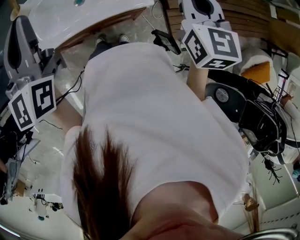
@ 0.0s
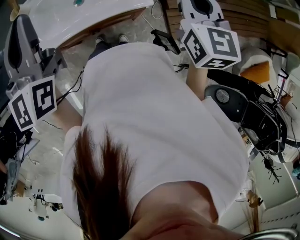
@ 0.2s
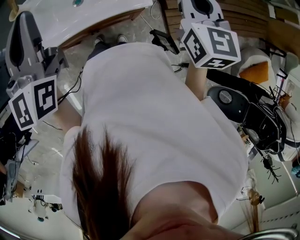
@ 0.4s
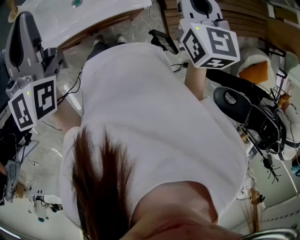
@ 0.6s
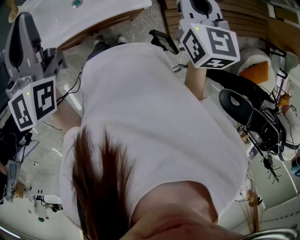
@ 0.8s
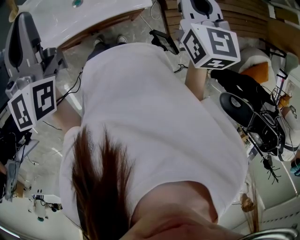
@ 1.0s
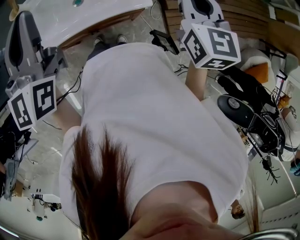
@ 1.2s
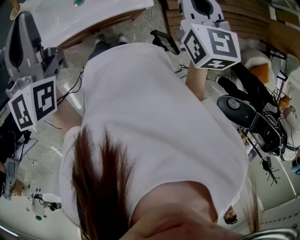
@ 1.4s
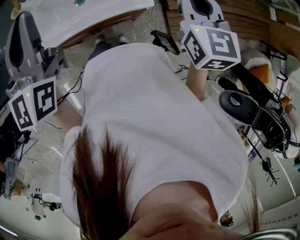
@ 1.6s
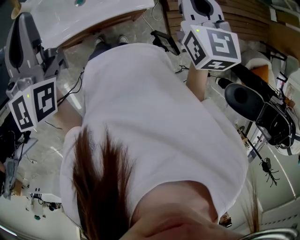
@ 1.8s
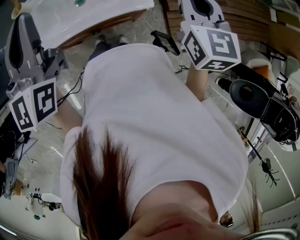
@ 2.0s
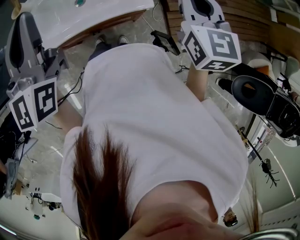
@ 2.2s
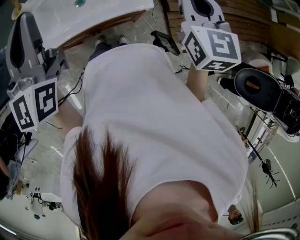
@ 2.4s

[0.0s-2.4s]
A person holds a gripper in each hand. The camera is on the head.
0.0s to 1.2s: There are only small adjustments of the grippers.
1.2s to 2.4s: Both grippers stay put.

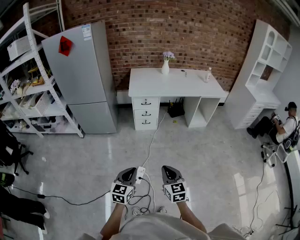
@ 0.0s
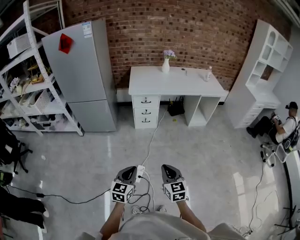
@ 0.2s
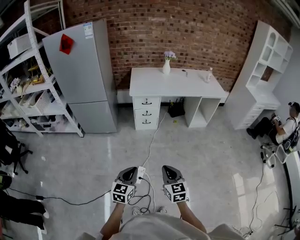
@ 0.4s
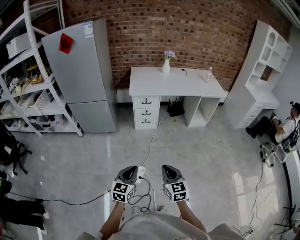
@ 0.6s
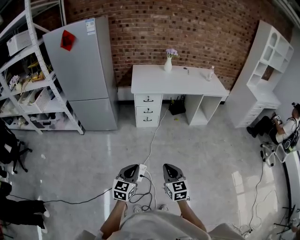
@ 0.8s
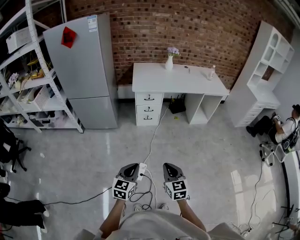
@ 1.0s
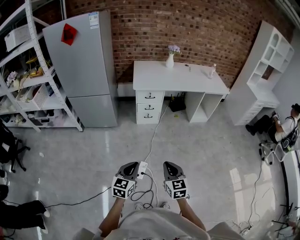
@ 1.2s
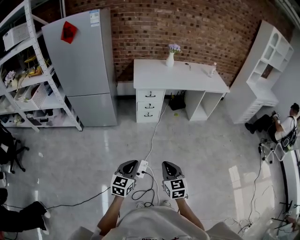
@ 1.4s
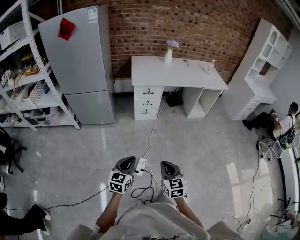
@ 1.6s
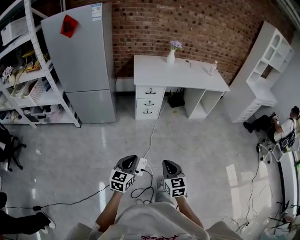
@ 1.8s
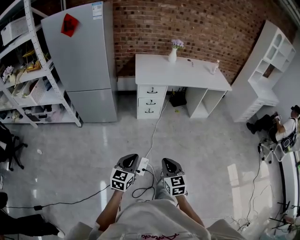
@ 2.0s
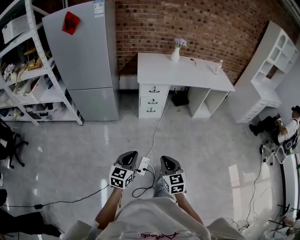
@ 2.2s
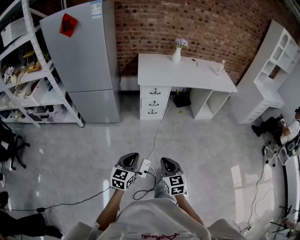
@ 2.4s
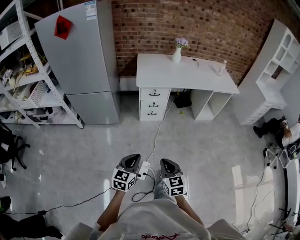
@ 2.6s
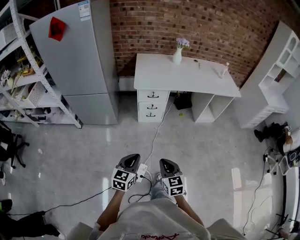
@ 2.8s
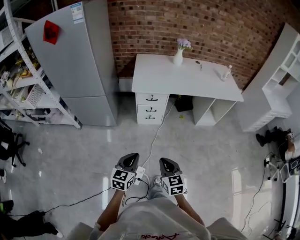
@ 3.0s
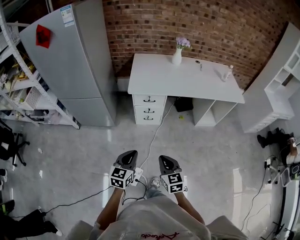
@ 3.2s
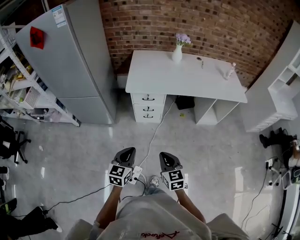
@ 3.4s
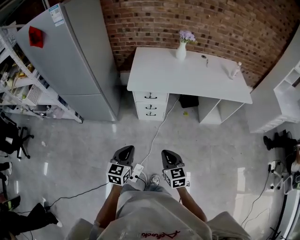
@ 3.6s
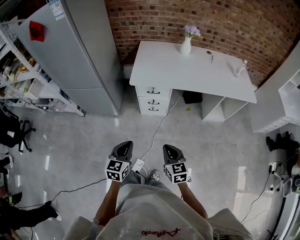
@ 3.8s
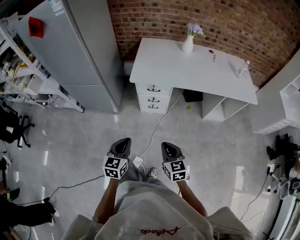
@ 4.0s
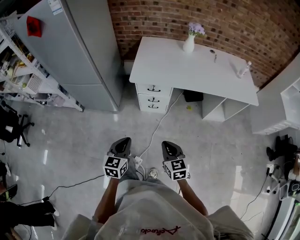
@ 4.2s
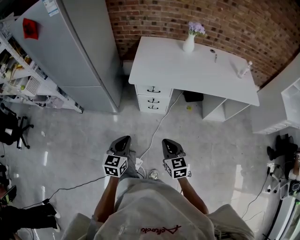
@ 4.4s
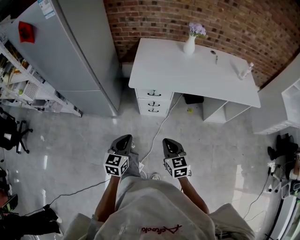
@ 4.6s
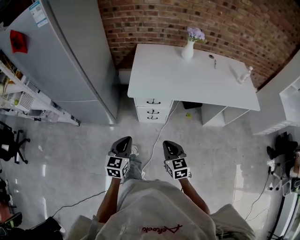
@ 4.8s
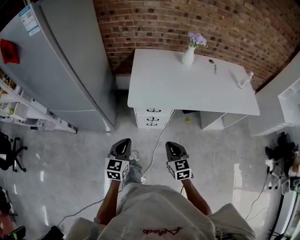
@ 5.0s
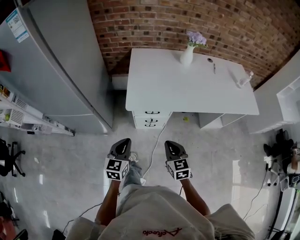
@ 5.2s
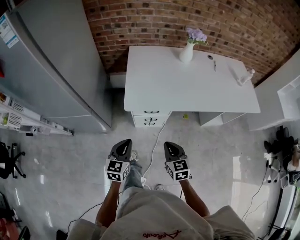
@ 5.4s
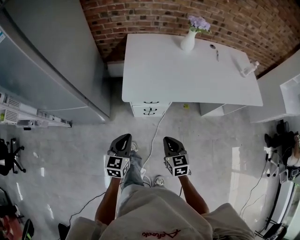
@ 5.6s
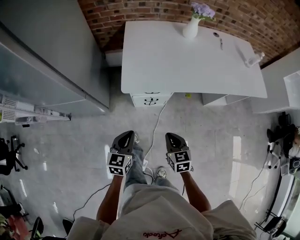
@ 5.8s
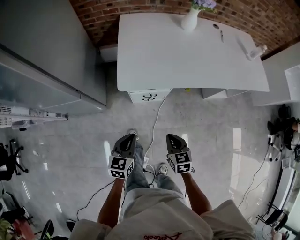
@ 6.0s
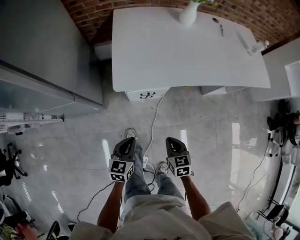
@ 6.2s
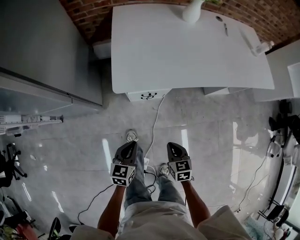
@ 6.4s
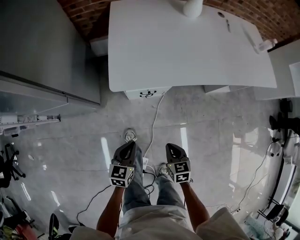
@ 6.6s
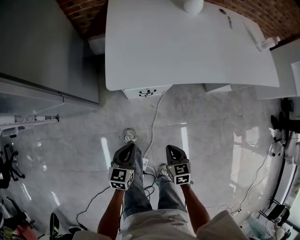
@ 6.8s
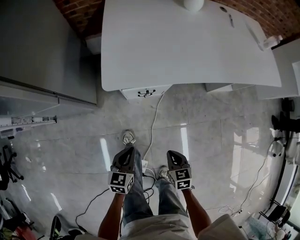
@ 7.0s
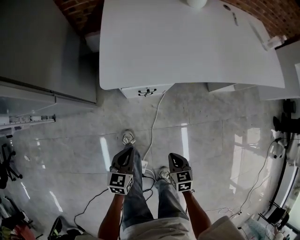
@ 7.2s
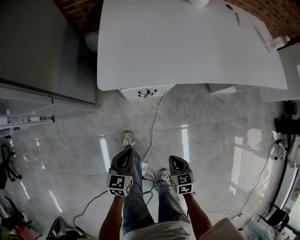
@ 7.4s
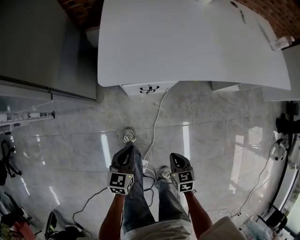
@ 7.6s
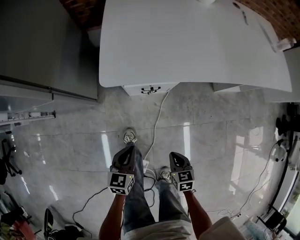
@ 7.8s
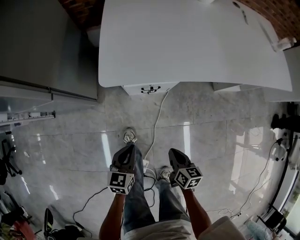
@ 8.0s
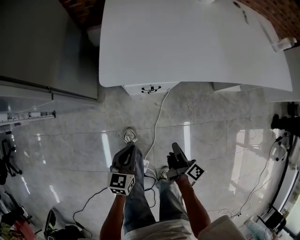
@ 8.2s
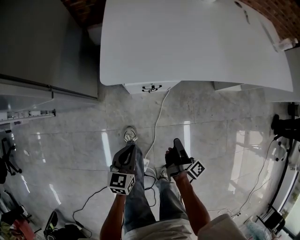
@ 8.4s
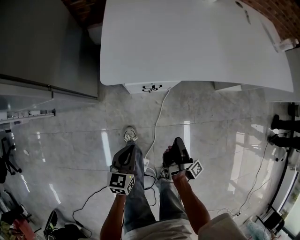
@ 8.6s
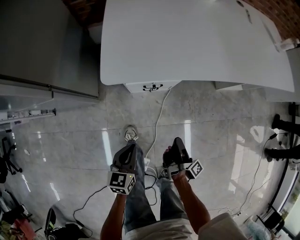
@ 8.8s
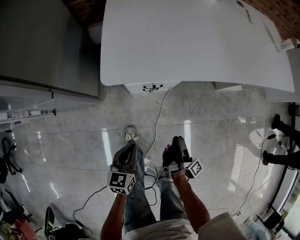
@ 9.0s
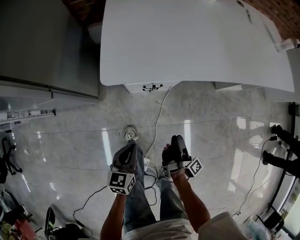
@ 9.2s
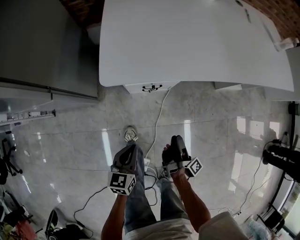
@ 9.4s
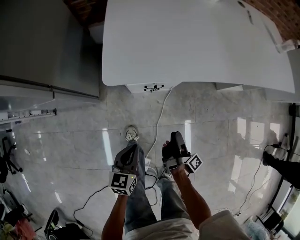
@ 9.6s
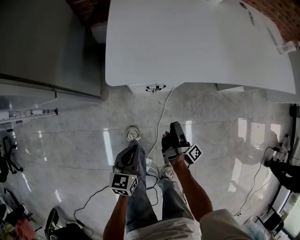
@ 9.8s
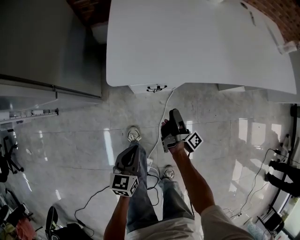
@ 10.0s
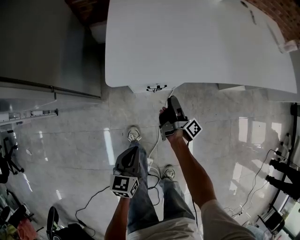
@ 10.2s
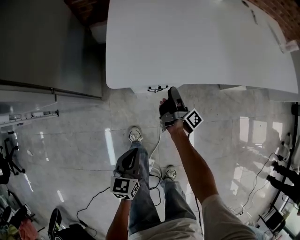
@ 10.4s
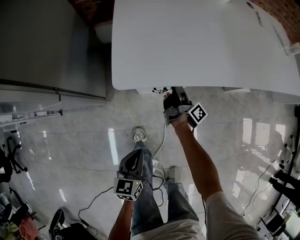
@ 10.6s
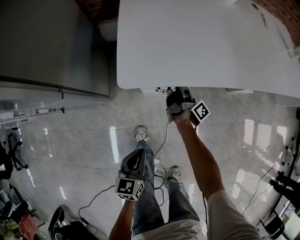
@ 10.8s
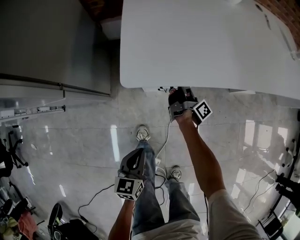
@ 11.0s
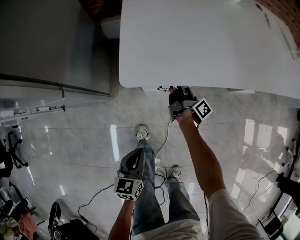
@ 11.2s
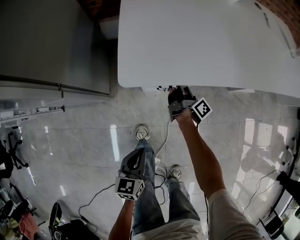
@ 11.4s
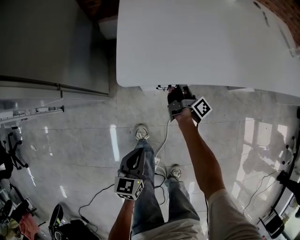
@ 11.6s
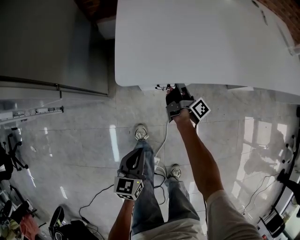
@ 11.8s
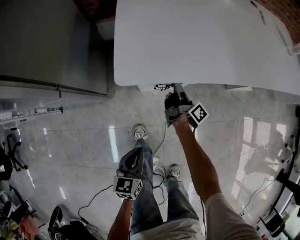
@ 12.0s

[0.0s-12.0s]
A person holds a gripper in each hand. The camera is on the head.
0.0s to 1.6s: Both grippers move to the left, some 10 cm.
1.6s to 3.0s: Both grippers move forward, approximately 20 cm.
3.0s to 4.4s: The right gripper goes approximately 20 cm forward and to the right. Meanwhile the left gripper shifts about 15 cm forward.
4.4s to 6.0s: The grippers both shift forward and downward by some 25 cm. The right gripper swivels approximately 20 degrees.
6.0s to 7.6s: Both grippers travel together downward, some 20 cm.
7.6s to 9.0s: The right gripper shifts roughly 10 cm forward, rotates around the line of its fingers by roughly 90 degrees, clockwise from behind, and opens up.
9.0s to 10.4s: The right gripper goes roughly 25 cm forward and to the left.
10.4s to 12.0s: The right gripper closes its fingers.

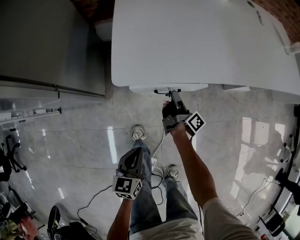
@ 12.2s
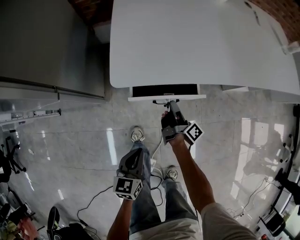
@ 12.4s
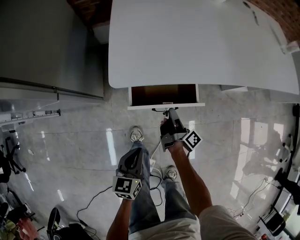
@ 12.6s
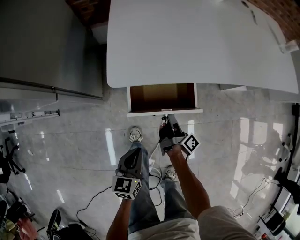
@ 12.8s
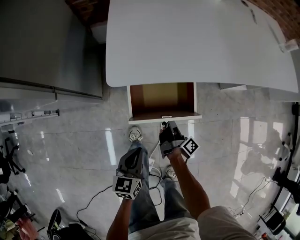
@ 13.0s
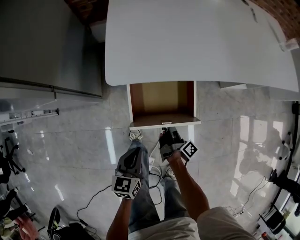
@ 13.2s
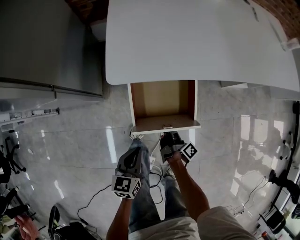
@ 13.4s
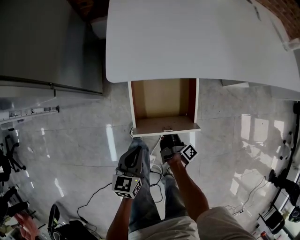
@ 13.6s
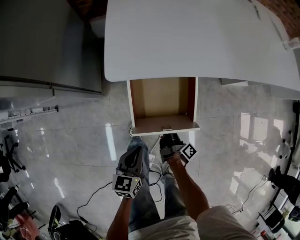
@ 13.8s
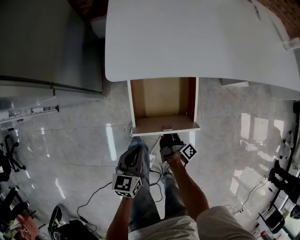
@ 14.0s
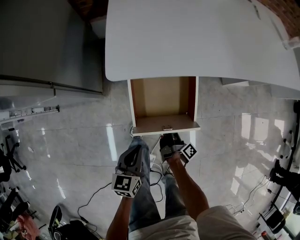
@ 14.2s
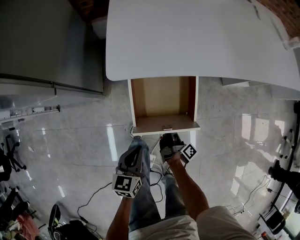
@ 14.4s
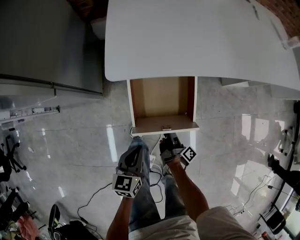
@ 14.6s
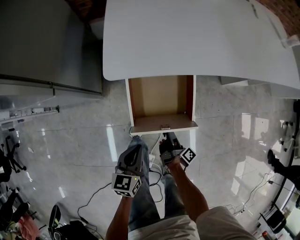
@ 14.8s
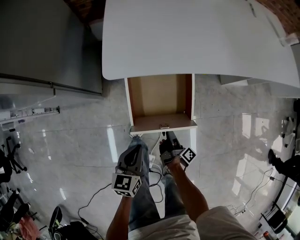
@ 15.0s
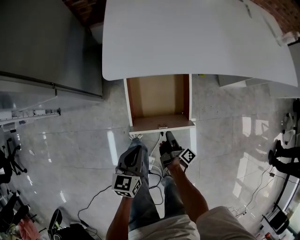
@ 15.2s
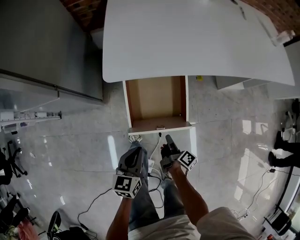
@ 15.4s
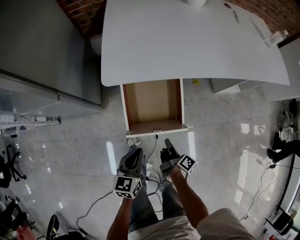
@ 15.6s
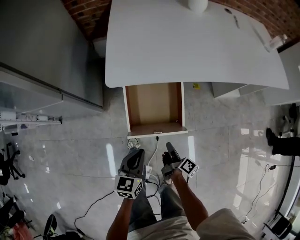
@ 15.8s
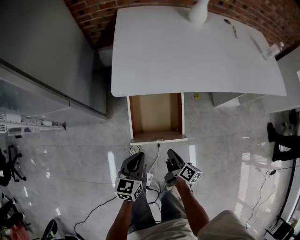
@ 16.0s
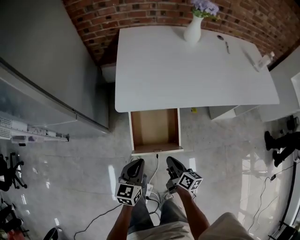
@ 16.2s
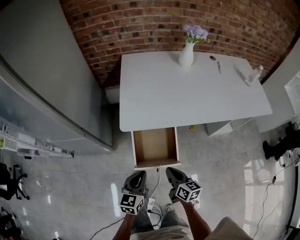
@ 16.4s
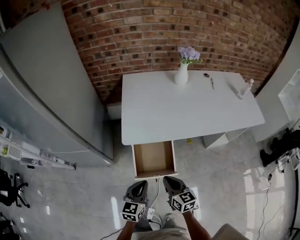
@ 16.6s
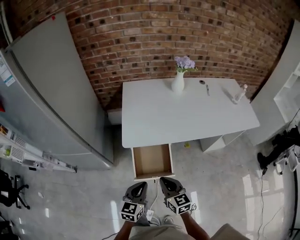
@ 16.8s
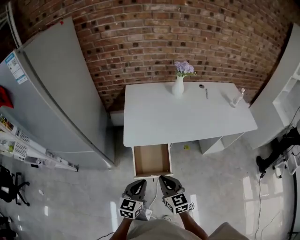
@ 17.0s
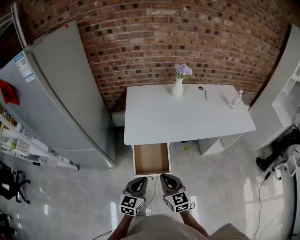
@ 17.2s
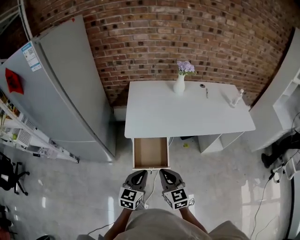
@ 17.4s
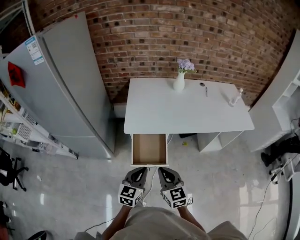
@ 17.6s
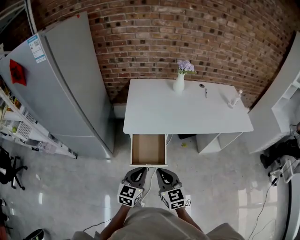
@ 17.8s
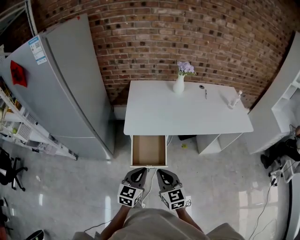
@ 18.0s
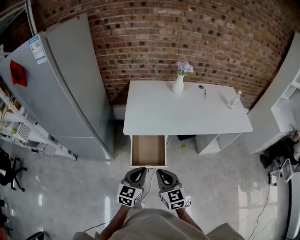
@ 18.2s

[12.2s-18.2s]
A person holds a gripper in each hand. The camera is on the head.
12.2s to 13.8s: The right gripper is displaced backward and downward by about 20 cm.
13.8s to 15.2s: The grippers move only a little.
15.2s to 16.6s: The right gripper goes some 35 cm upward, rotates around the line of its fingers by roughly 80 degrees, counterclockwise from behind, and closes up, while the left gripper travels upward by about 20 cm.
16.6s to 18.2s: The two grippers go roughly 15 cm upward and backward. The right gripper rotates roughly 20 degrees.

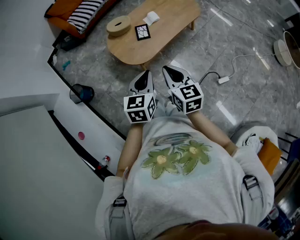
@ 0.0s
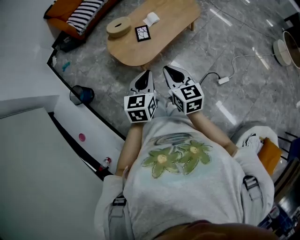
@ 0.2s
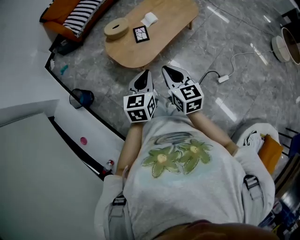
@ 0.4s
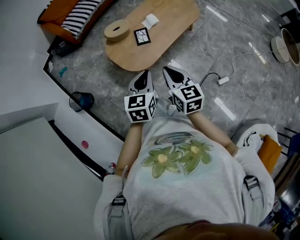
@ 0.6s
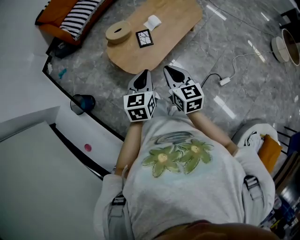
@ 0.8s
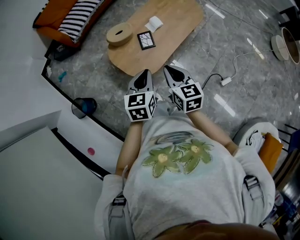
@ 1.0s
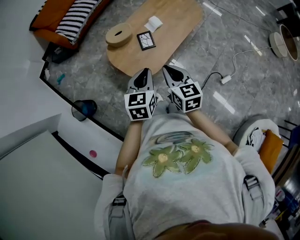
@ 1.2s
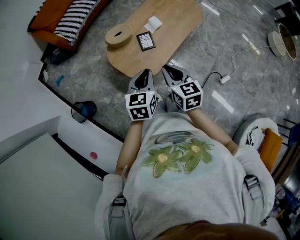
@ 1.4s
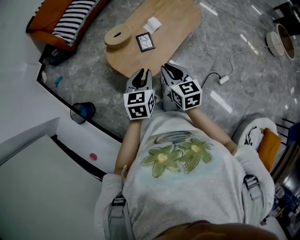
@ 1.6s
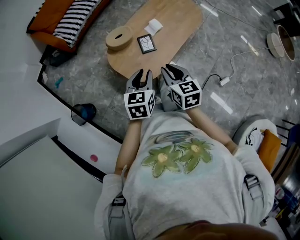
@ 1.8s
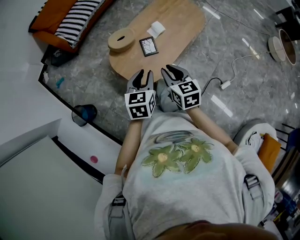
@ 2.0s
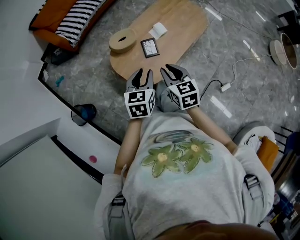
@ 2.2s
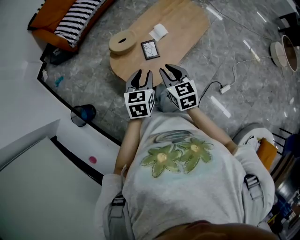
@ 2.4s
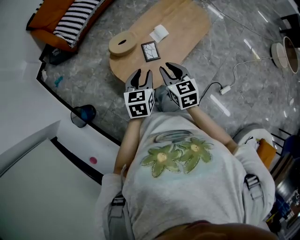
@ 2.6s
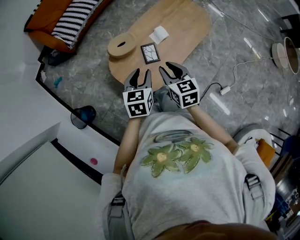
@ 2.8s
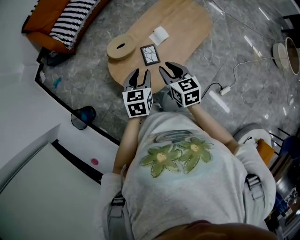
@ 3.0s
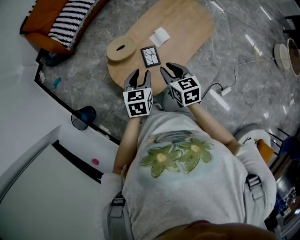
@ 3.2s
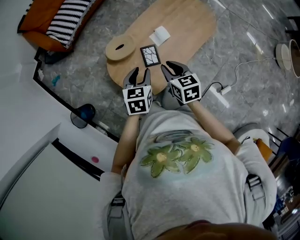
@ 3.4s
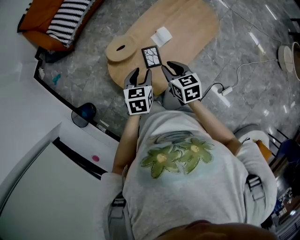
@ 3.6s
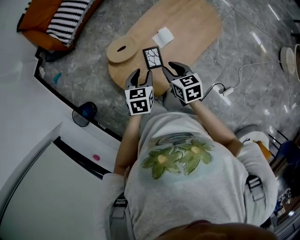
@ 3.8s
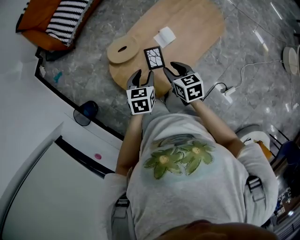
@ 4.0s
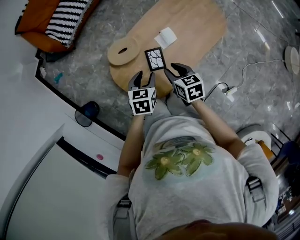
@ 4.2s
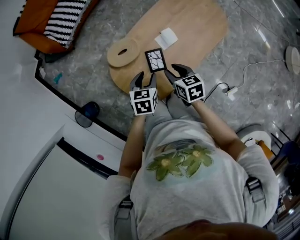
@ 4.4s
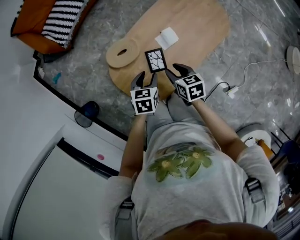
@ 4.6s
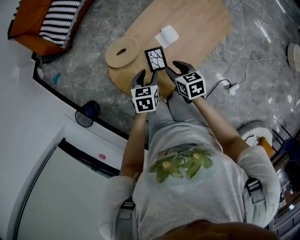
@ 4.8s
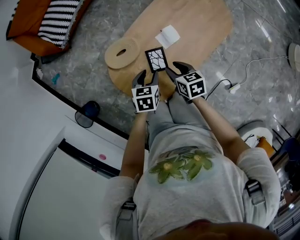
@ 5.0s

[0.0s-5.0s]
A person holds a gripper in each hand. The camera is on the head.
0.0s to 1.6s: The two grippers go approximately 20 cm forward and to the left.
1.6s to 3.4s: The grippers both shift forward by some 20 cm.
3.4s to 5.0s: The grippers both shift downward and forward by approximately 15 cm.
